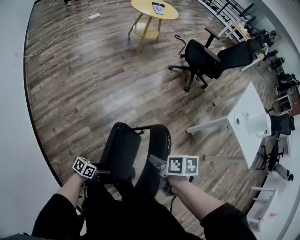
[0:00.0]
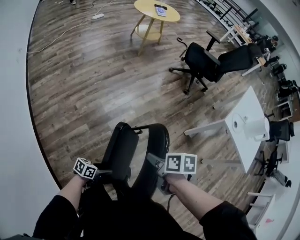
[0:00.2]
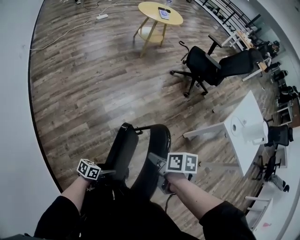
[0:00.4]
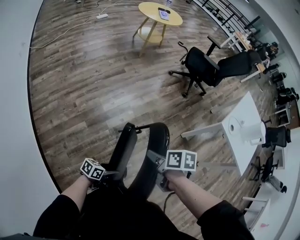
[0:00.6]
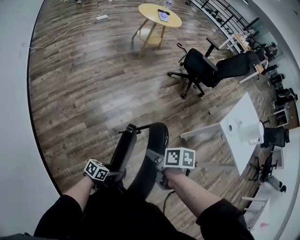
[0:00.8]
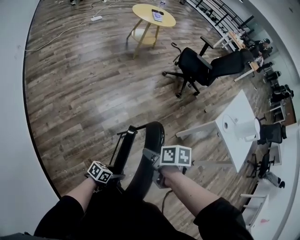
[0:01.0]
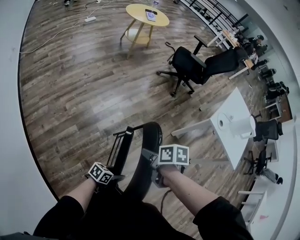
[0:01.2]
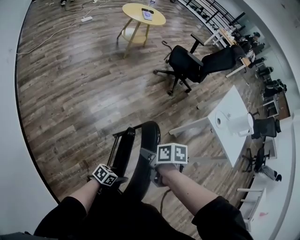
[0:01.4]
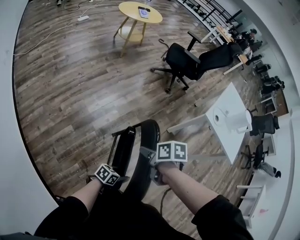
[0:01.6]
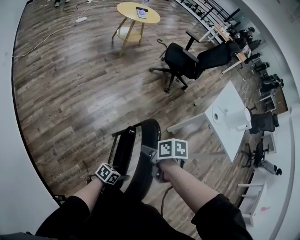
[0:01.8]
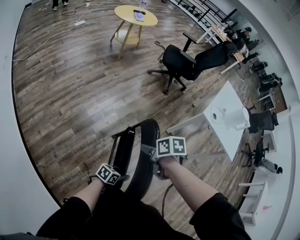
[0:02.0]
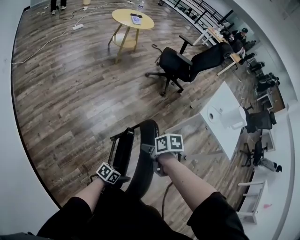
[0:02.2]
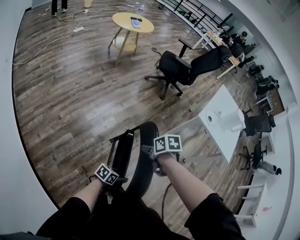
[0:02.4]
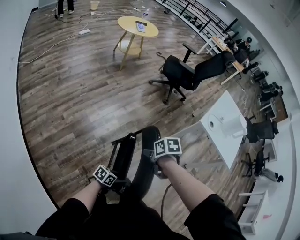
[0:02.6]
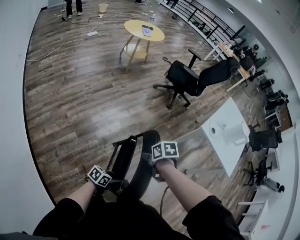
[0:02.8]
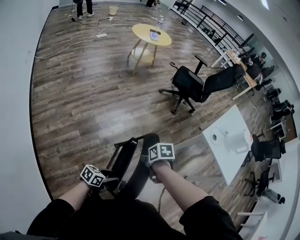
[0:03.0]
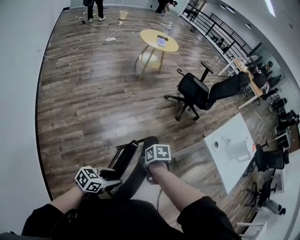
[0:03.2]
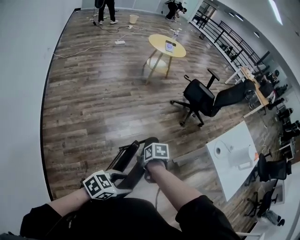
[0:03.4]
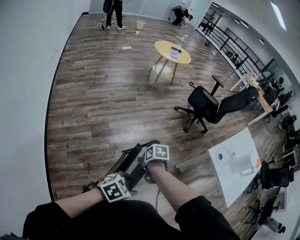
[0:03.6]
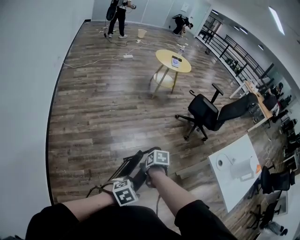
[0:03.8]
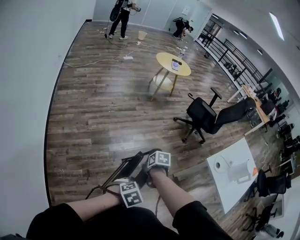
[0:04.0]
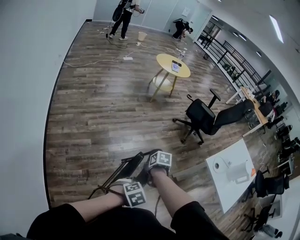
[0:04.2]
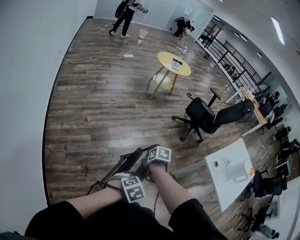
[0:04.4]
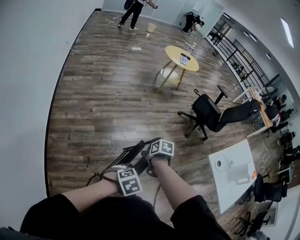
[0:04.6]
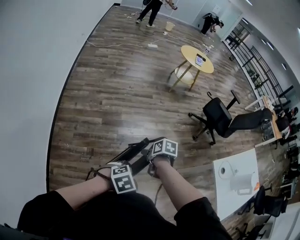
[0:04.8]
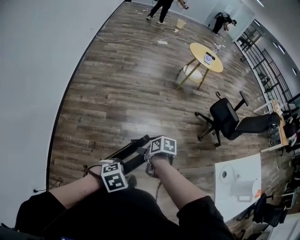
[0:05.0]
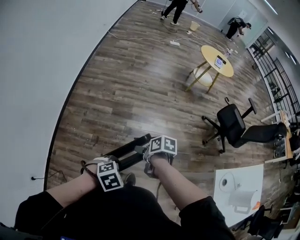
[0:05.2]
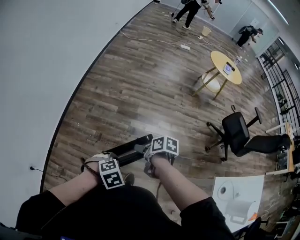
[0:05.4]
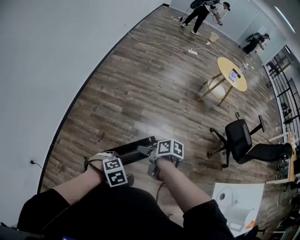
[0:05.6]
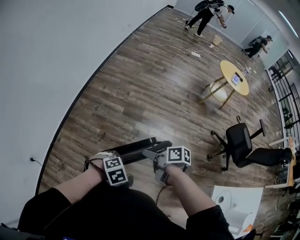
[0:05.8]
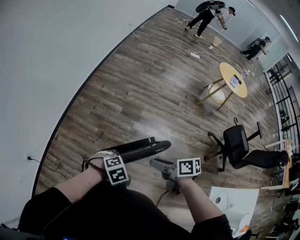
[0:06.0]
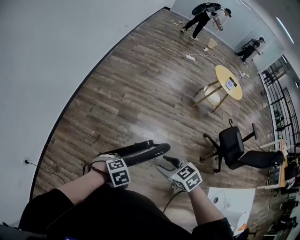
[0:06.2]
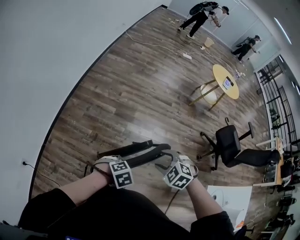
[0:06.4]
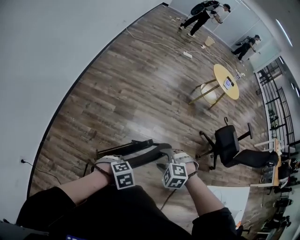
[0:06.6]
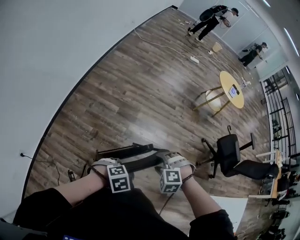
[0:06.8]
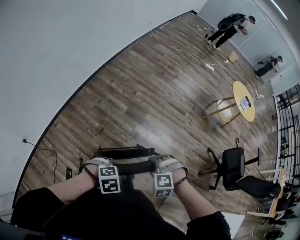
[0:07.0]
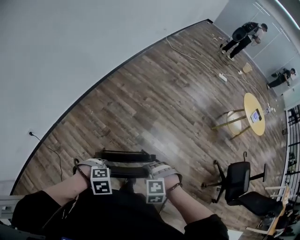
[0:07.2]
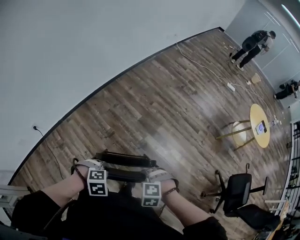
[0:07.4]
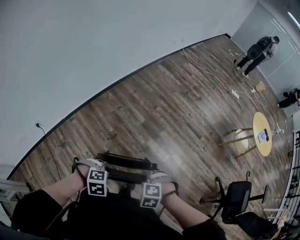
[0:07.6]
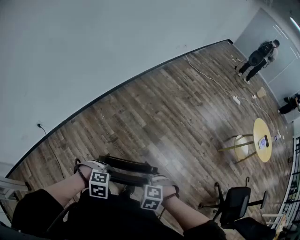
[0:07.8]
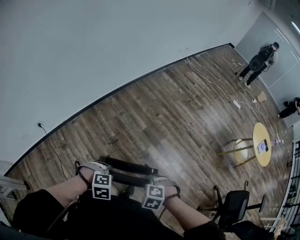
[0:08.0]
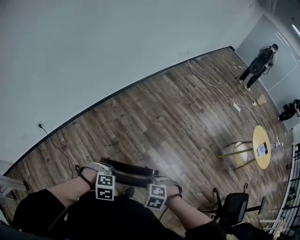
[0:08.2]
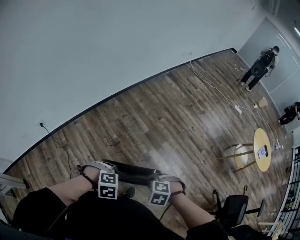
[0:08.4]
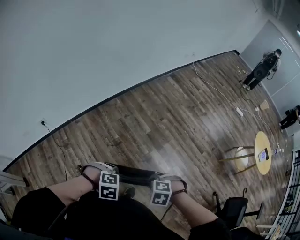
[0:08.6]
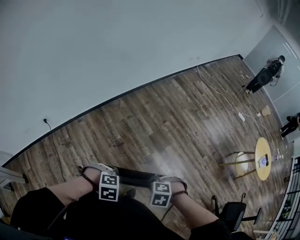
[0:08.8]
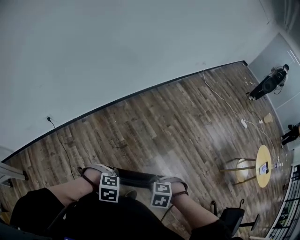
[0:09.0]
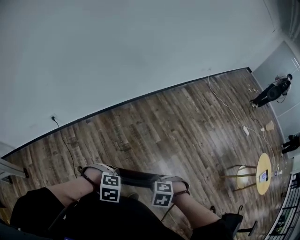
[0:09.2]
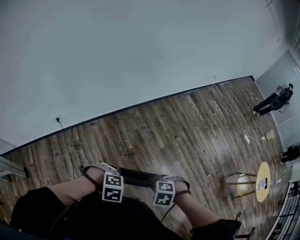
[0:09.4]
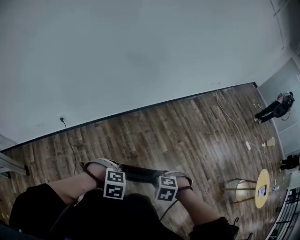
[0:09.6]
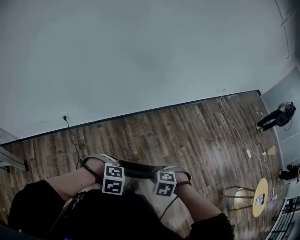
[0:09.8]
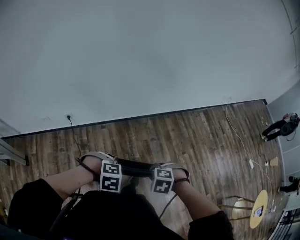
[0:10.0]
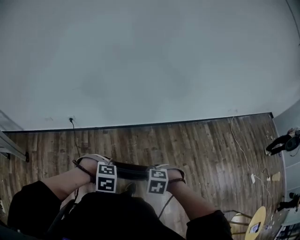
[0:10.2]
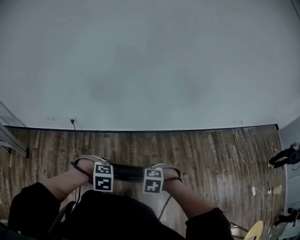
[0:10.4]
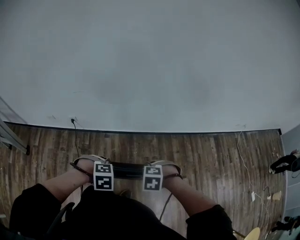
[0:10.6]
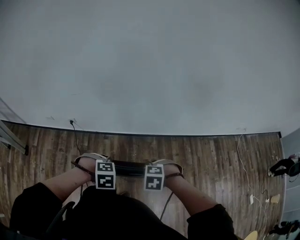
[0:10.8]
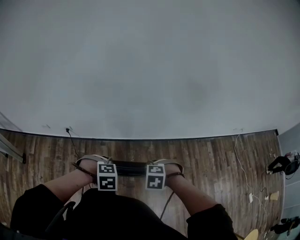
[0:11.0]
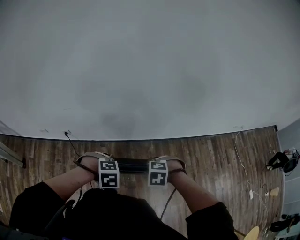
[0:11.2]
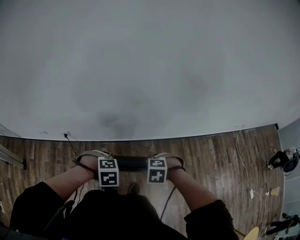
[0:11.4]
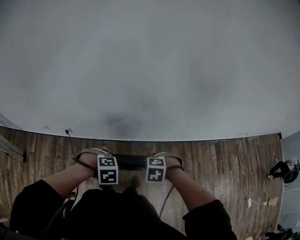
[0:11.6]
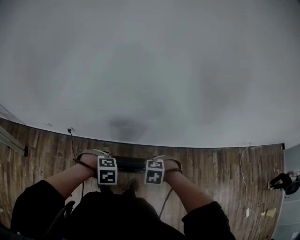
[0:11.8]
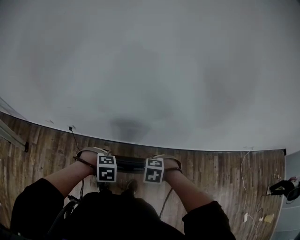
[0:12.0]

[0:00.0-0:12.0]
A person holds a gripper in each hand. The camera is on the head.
0:00.0 to 0:01.6: The left gripper changes place by some 25 cm, while the right gripper ends up about 5 cm from where it was.
0:01.6 to 0:03.0: The right gripper shifts by some 10 cm. The left gripper is displaced upward by some 5 cm.
0:03.0 to 0:04.4: The left gripper heads upward, covering some 15 cm, and tilts its fingers approximately 30 degrees downward.
0:04.4 to 0:06.0: The right gripper shifts about 10 cm upward, and points its fingers approximately 40 degrees further upward, while the left gripper travels downward by approximately 5 cm, swivels roughly 40 degrees, and closes.
0:06.0 to 0:07.6: The right gripper shifts roughly 10 cm downward, rolls counterclockwise, seen from behind, by about 110 degrees, and closes its fingers.
0:07.6 to 0:09.0: The right gripper shifts by approximately 10 cm, while the left gripper shifts by approximately 5 cm.
0:09.0 to 0:10.4: The left gripper ends up some 25 cm from where it was, and swivels roughly 30 degrees; the right gripper changes place by approximately 35 cm, and changes its angle by approximately 30 degrees.
0:10.4 to 0:12.0: The left gripper ends up approximately 25 cm from where it was. The right gripper shifts by about 30 cm.

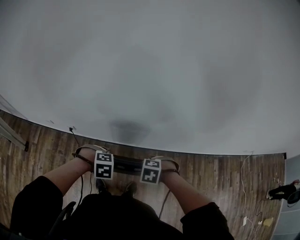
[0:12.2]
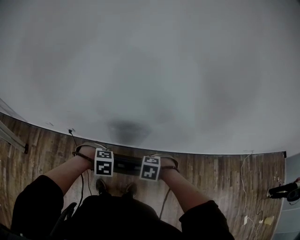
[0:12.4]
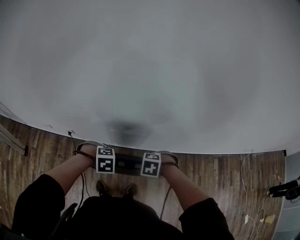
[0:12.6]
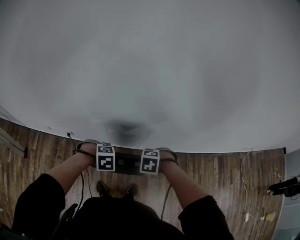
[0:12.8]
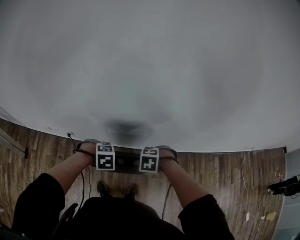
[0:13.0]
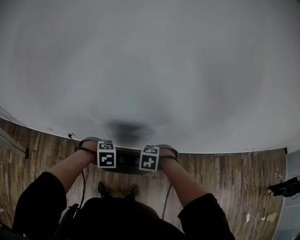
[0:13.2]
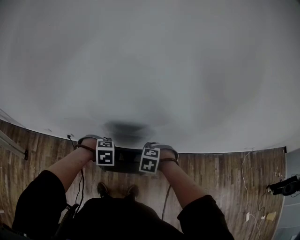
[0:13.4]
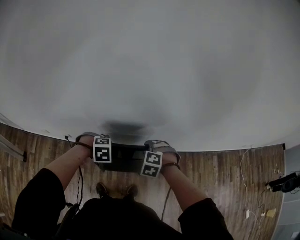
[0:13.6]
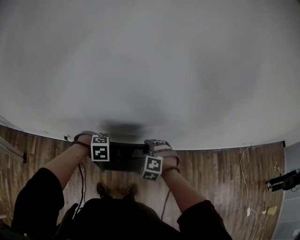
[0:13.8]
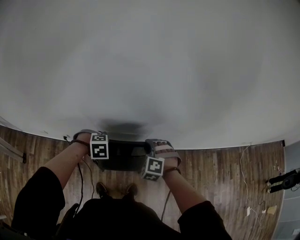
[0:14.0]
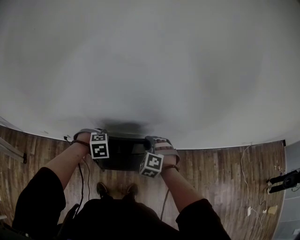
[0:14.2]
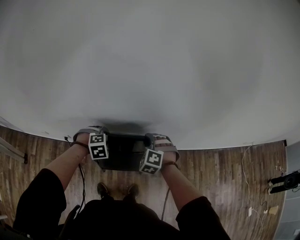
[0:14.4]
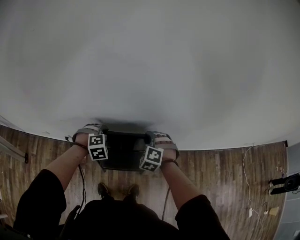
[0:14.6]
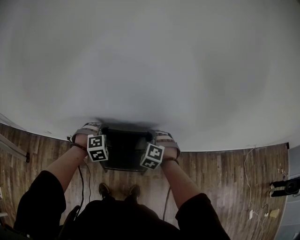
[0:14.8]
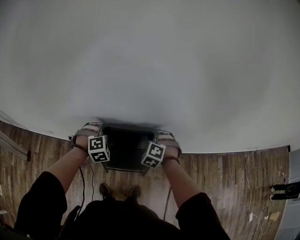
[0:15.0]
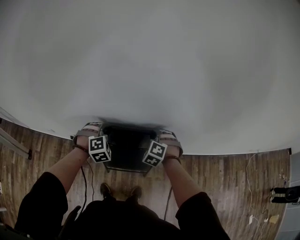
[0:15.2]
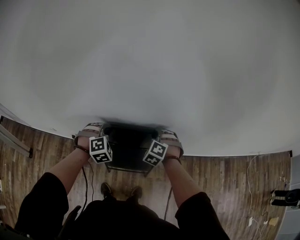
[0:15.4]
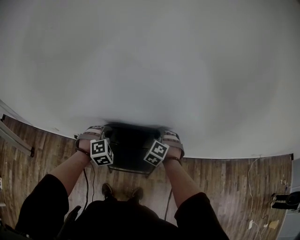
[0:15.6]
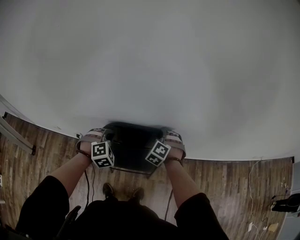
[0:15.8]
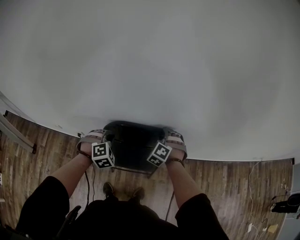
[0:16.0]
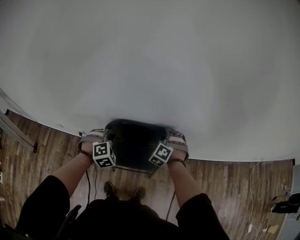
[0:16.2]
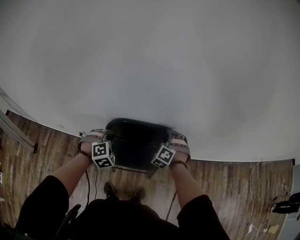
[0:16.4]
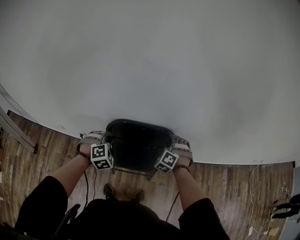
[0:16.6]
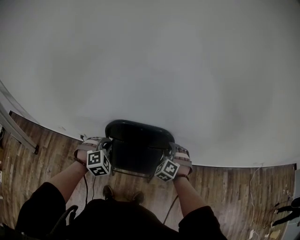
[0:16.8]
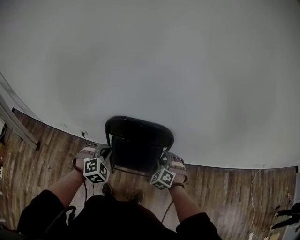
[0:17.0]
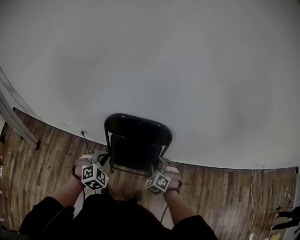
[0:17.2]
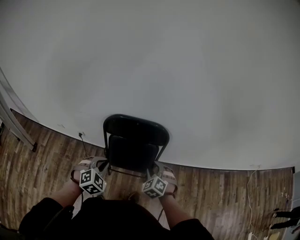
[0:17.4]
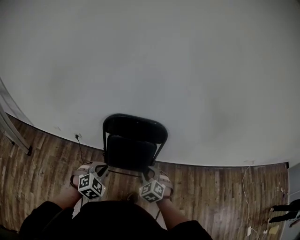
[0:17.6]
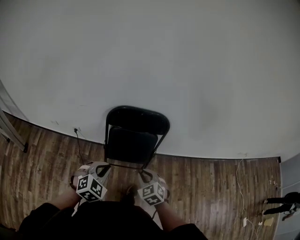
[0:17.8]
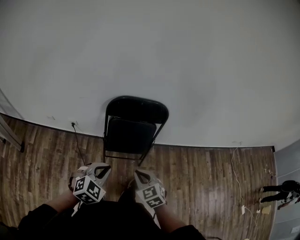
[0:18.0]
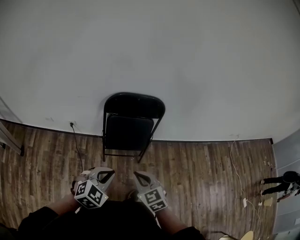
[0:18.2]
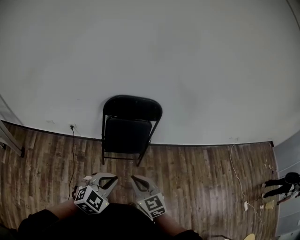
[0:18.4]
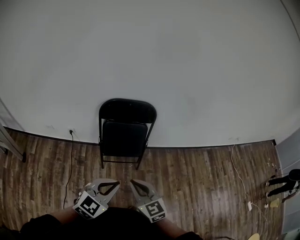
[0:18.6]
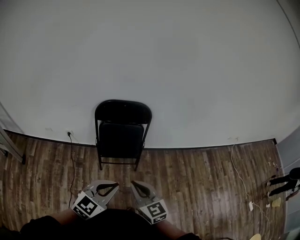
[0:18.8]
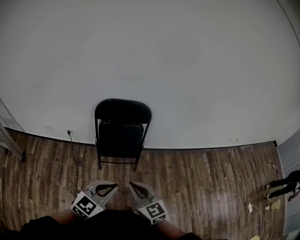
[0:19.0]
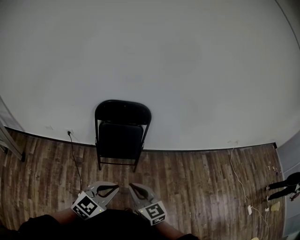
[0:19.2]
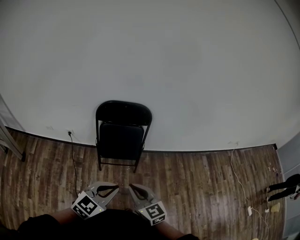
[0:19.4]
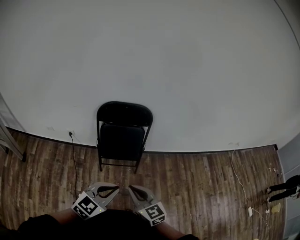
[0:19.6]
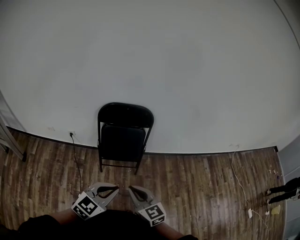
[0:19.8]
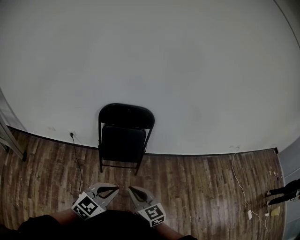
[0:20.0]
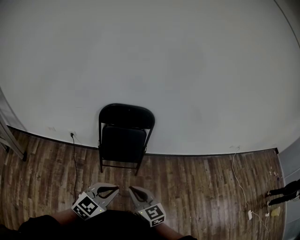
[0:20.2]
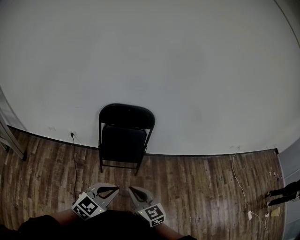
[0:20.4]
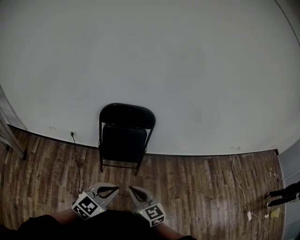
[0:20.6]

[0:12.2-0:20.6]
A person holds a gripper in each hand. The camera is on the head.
0:12.2 to 0:13.6: The left gripper changes place by approximately 10 cm. Meanwhile the right gripper changes place by approximately 15 cm, swivels some 20 degrees, and opens.
0:13.6 to 0:15.0: The left gripper moves roughly 10 cm, and rotates some 30 degrees; the right gripper moves some 10 cm.
0:15.0 to 0:16.4: The left gripper moves backward, about 5 cm.
0:16.4 to 0:17.8: The two grippers go some 30 cm backward. The right gripper changes its angle by about 50 degrees, and closes up; the left gripper changes its angle by some 30 degrees.
0:17.8 to 0:19.2: The right gripper travels backward and upward by some 20 cm, and tips its fingers upward by about 30 degrees. Meanwhile the left gripper shifts roughly 25 cm backward, to the right and upward, and rotates about 30 degrees.
0:19.2 to 0:20.6: The grippers stay close to where they were, moving slightly.

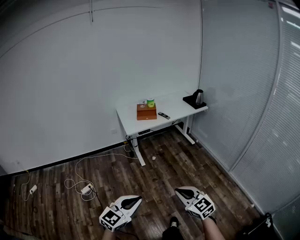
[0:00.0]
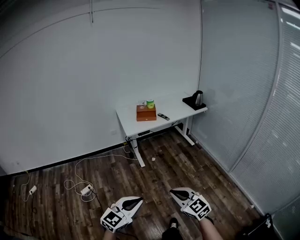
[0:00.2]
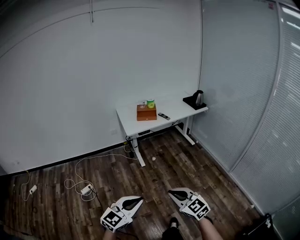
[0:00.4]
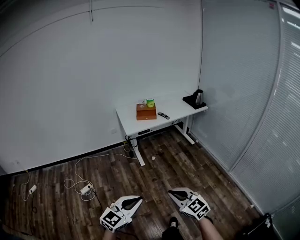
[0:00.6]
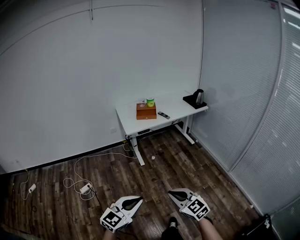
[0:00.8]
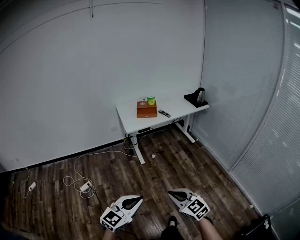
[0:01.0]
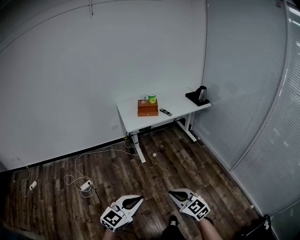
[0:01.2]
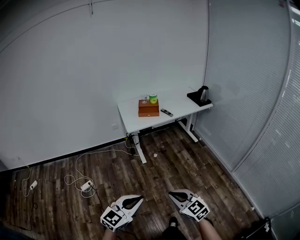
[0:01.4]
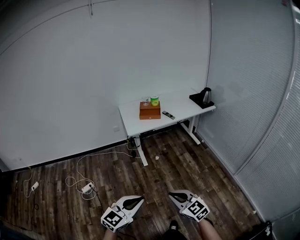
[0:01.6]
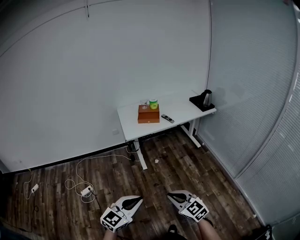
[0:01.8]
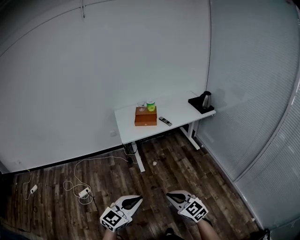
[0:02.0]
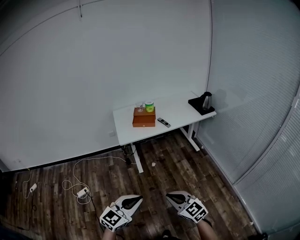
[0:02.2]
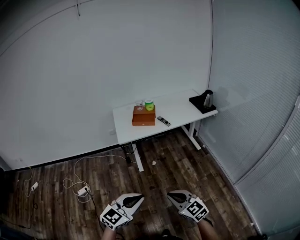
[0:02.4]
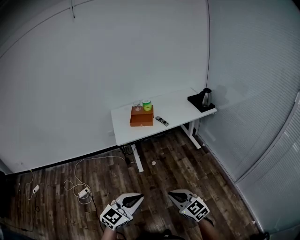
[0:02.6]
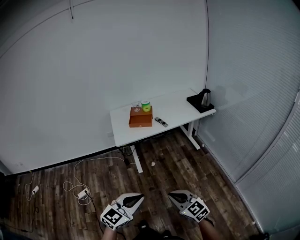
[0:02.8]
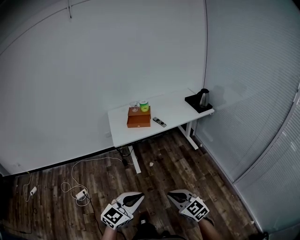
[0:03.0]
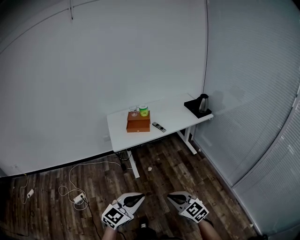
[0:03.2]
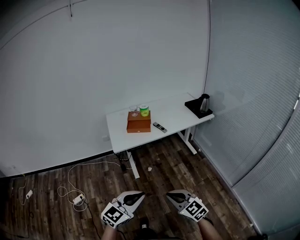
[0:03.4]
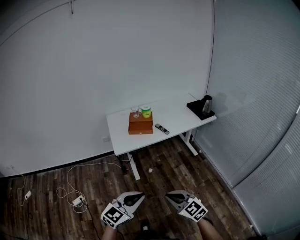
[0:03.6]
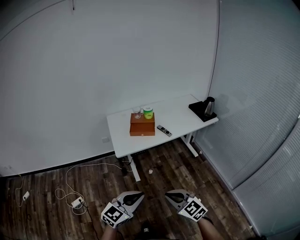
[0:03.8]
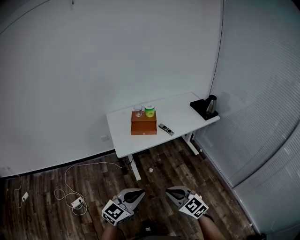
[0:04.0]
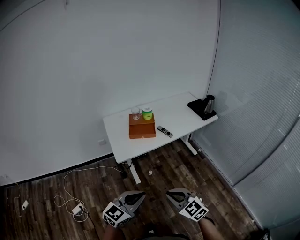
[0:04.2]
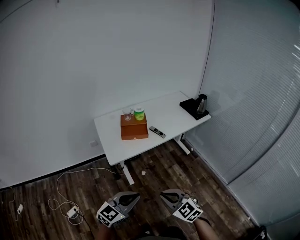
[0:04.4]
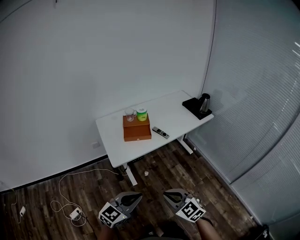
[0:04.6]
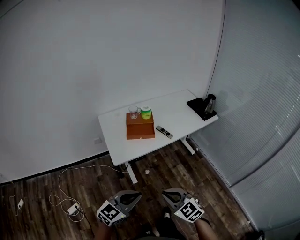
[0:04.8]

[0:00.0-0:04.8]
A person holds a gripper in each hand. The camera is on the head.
0:00.0 to 0:01.6: The right gripper travels forward and downward by some 10 cm. The left gripper moves forward, approximately 10 cm.
0:01.6 to 0:03.2: Both grippers move forward and to the right, about 20 cm.
0:03.2 to 0:04.8: Both grippers travel together forward and to the left, approximately 25 cm.
